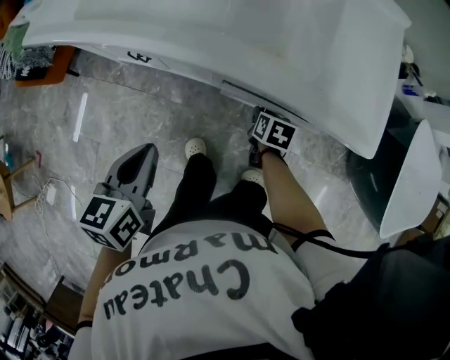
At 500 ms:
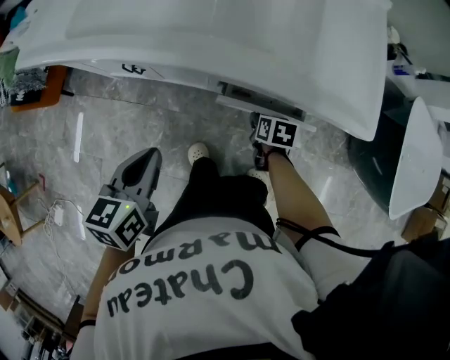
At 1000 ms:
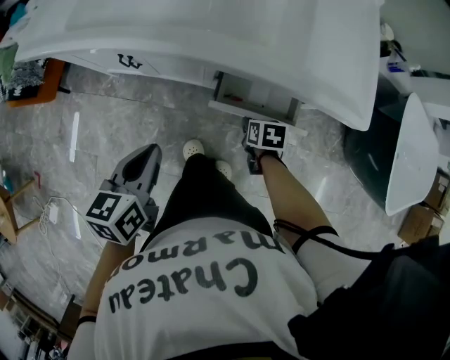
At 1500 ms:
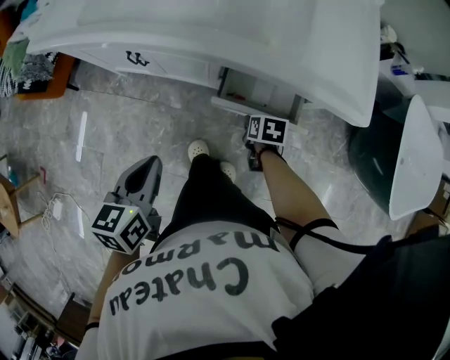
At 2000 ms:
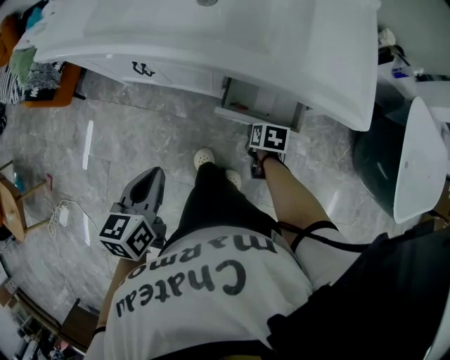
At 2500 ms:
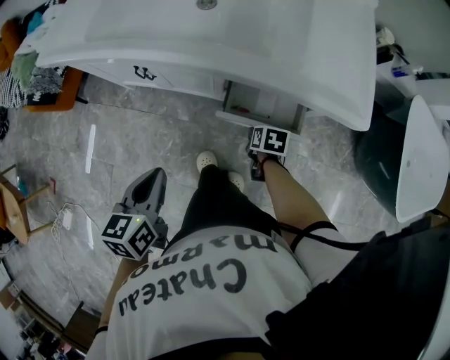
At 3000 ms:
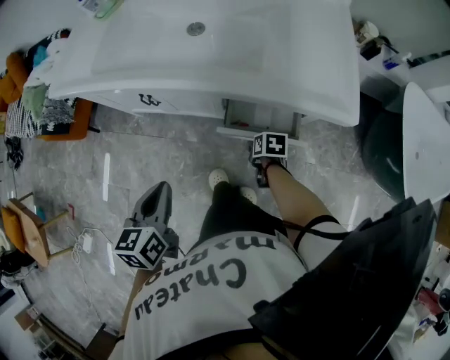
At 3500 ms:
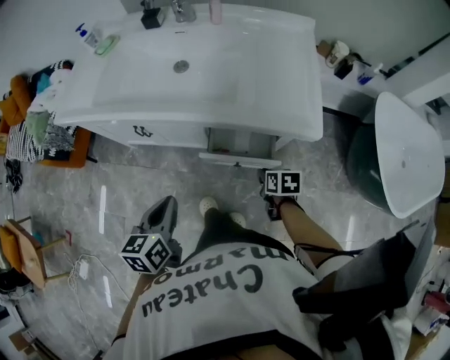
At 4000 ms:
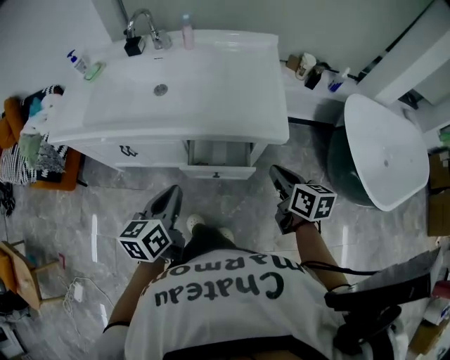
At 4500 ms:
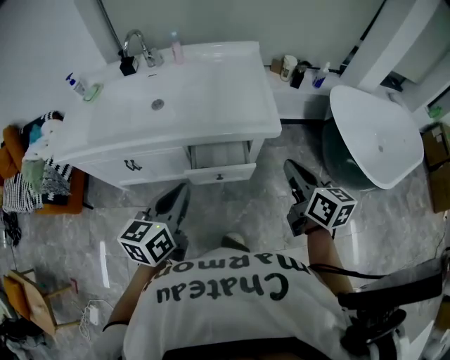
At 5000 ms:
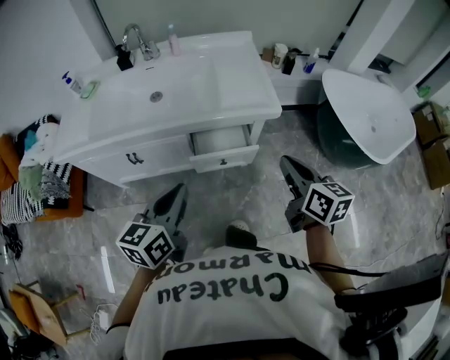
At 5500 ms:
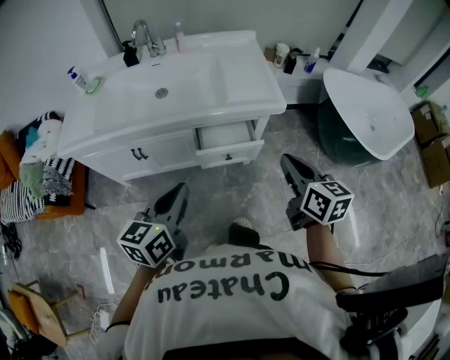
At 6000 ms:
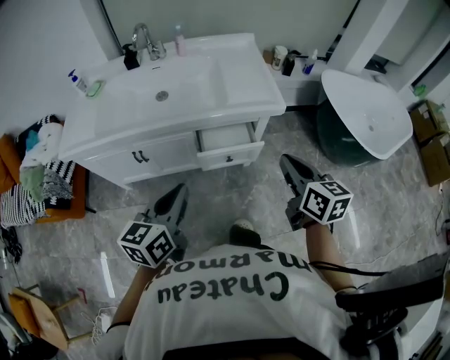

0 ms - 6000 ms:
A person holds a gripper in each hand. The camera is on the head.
0 ms - 2000 ms: The grippers both shift backward by roughly 5 cm.
2000 ms - 4000 ms: The right gripper is displaced upward and to the right by about 35 cm, tips its fingers upward by some 40 degrees, and closes its fingers, while the left gripper is displaced to the right and upward by about 15 cm.
4000 ms - 6000 ms: The left gripper goes about 15 cm backward, upward and to the left, and turns by some 20 degrees, while the right gripper goes about 20 cm backward and upward.

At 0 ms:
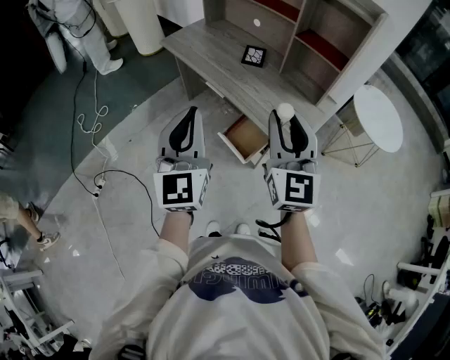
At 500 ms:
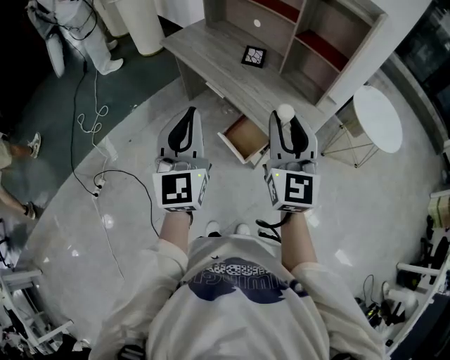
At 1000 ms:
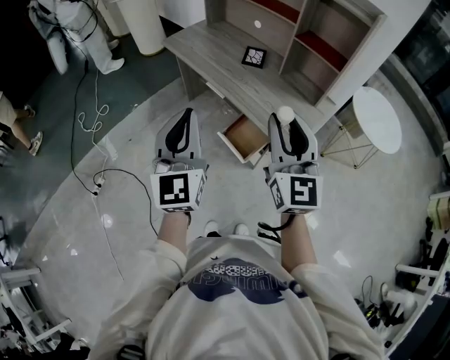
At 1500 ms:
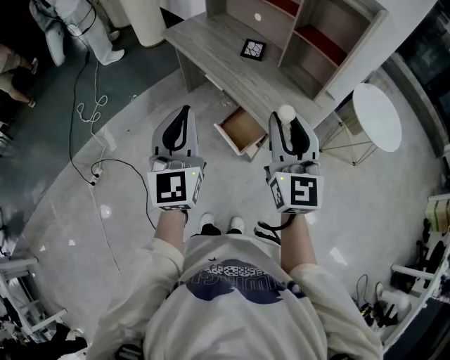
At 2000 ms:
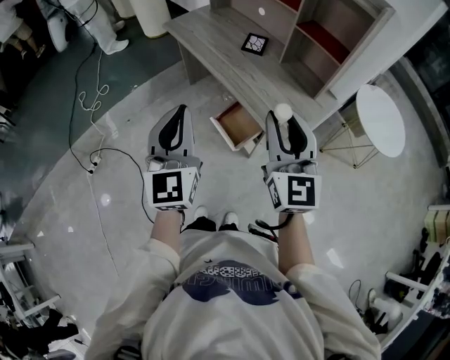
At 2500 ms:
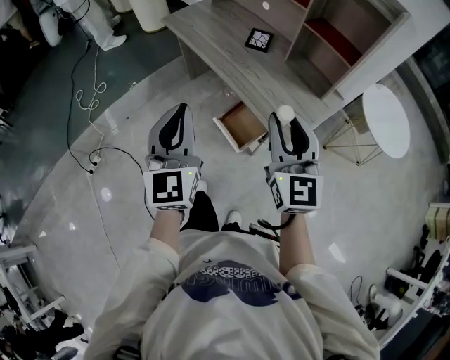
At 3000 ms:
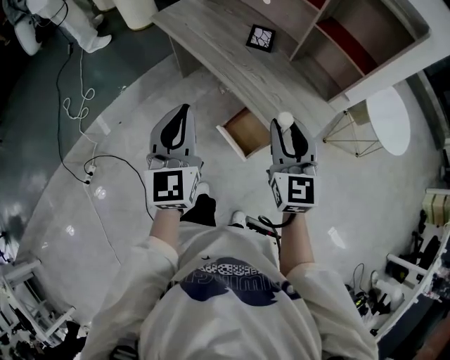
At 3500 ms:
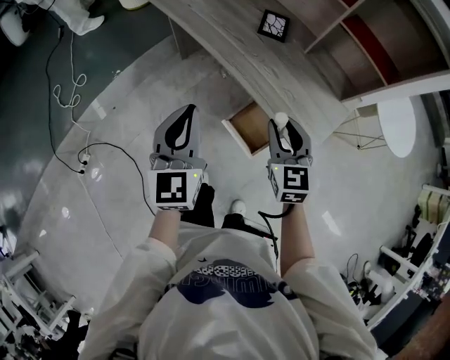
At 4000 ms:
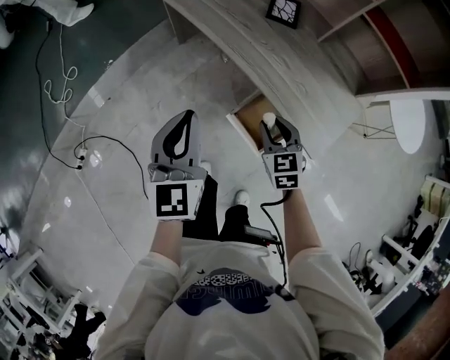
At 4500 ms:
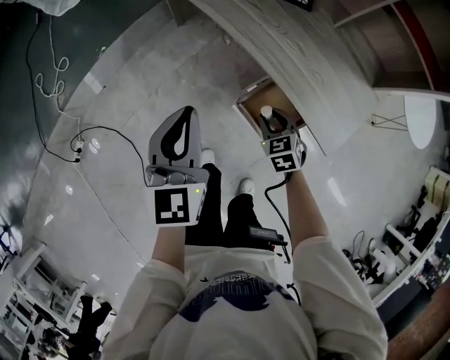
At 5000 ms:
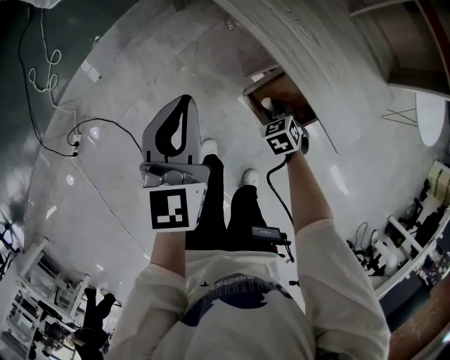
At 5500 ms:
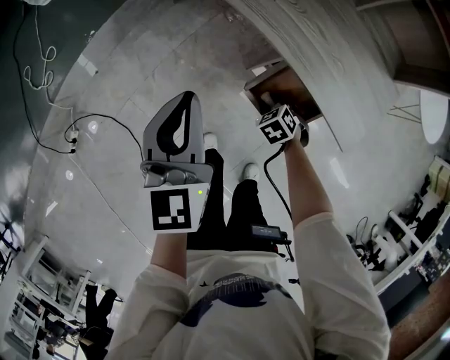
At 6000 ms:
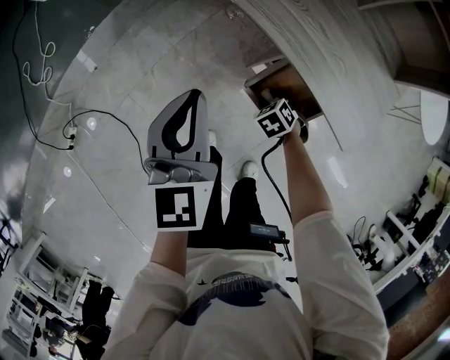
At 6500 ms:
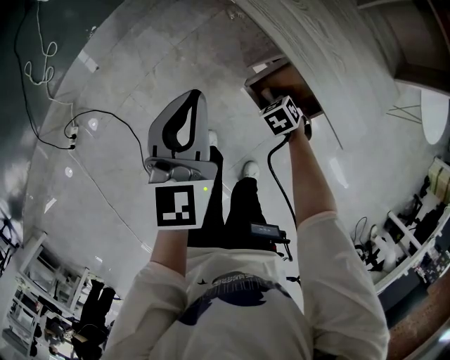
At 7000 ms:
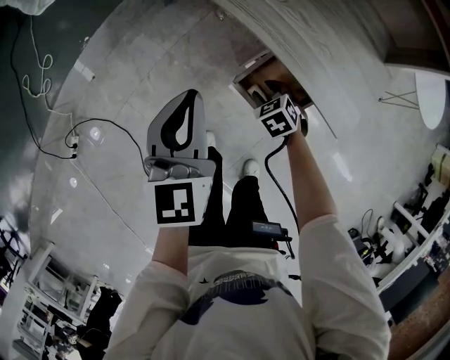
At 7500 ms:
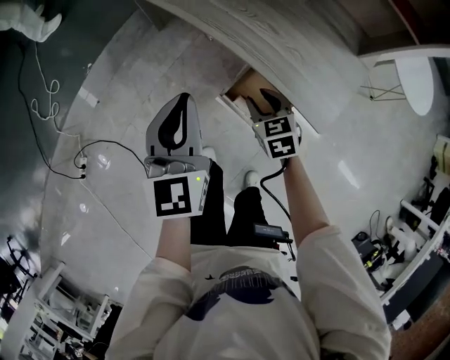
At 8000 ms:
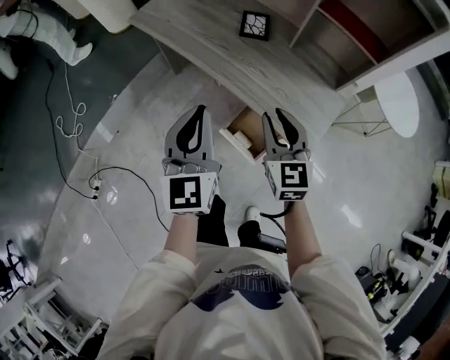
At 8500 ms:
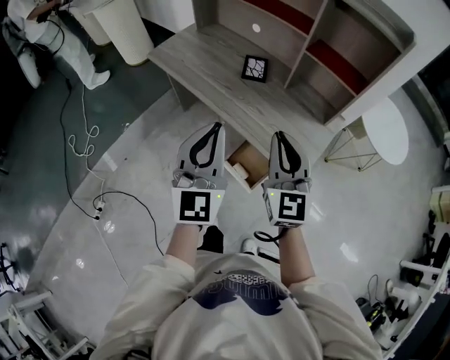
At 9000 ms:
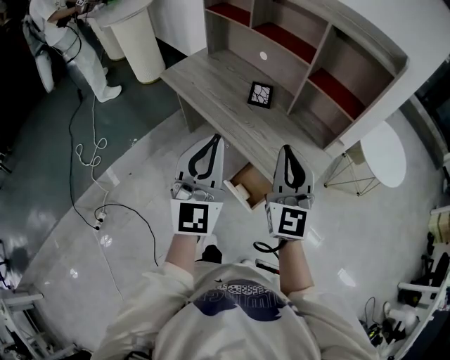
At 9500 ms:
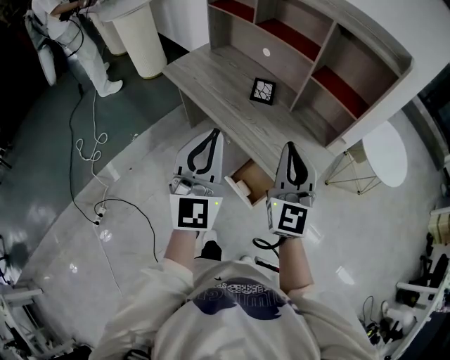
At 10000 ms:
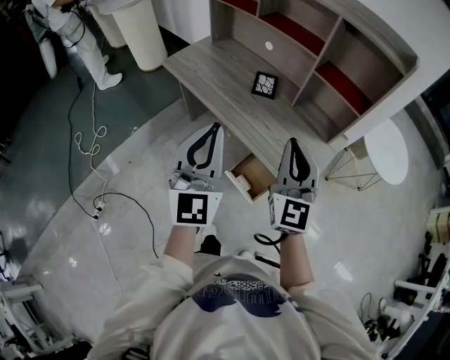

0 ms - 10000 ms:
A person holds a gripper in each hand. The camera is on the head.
0 ms - 2000 ms: The left gripper ends up some 5 cm from where it was, while the right gripper goes approximately 5 cm to the right.
2000 ms - 4000 ms: The right gripper travels downward and forward by approximately 40 cm, and tips its fingers downward by about 40 degrees, while the left gripper is displaced forward, downward and to the left by roughly 30 cm, and changes its angle by roughly 20 degrees.
4000 ms - 6000 ms: The right gripper shifts some 25 cm downward, and tilts its fingers about 40 degrees downward; the left gripper heads downward, covering approximately 10 cm.
6000 ms - 8000 ms: The right gripper moves upward, some 40 cm, and tips its fingers upward by some 60 degrees. The left gripper heads upward, covering approximately 20 cm.
8000 ms - 10000 ms: Both grippers travel together upward, roughly 15 cm. The right gripper rotates roughly 20 degrees, and closes.

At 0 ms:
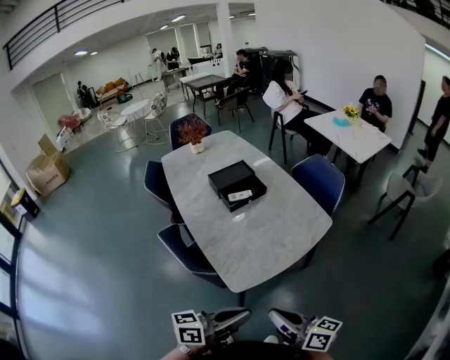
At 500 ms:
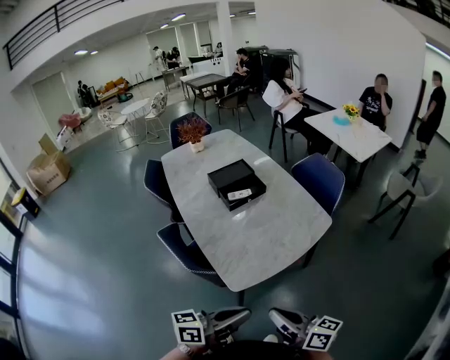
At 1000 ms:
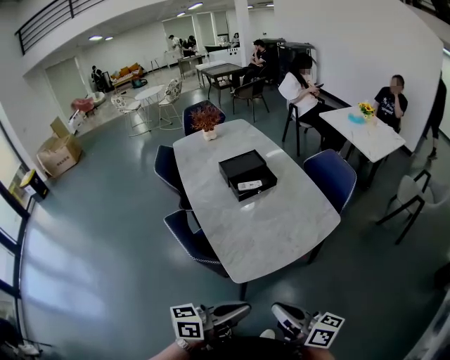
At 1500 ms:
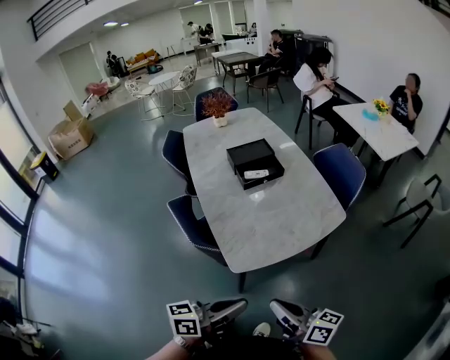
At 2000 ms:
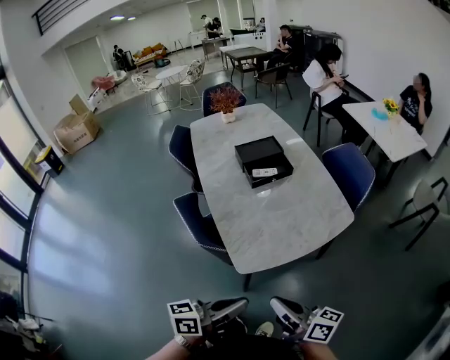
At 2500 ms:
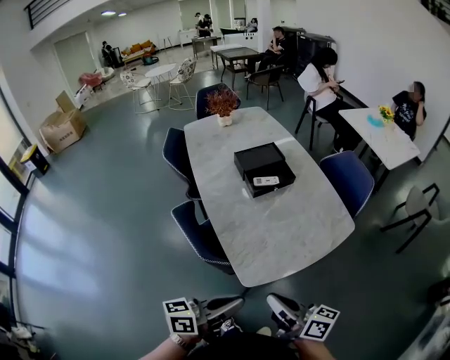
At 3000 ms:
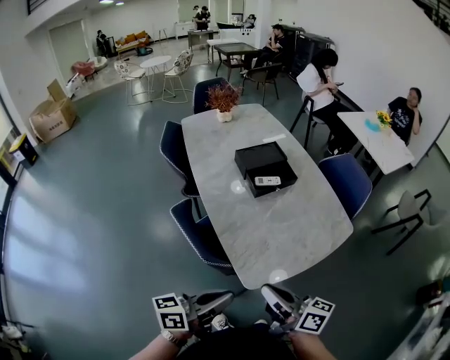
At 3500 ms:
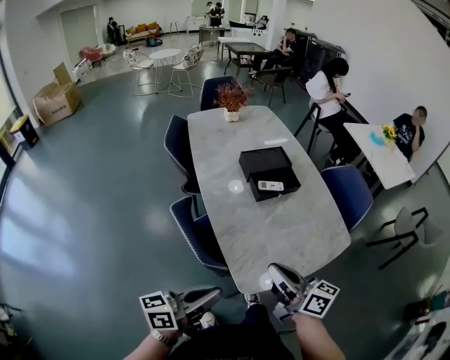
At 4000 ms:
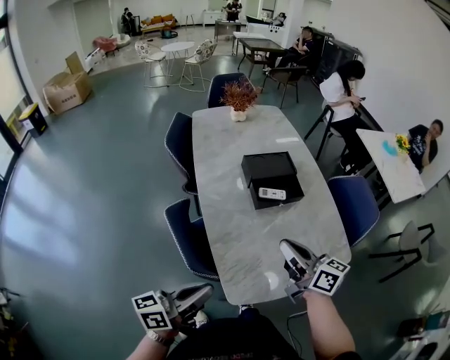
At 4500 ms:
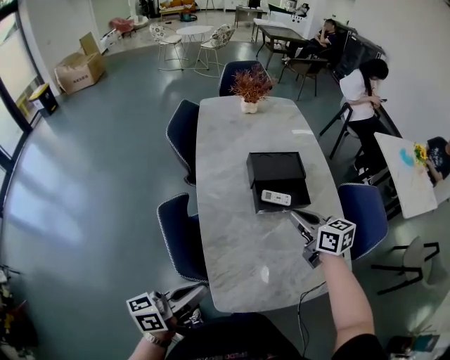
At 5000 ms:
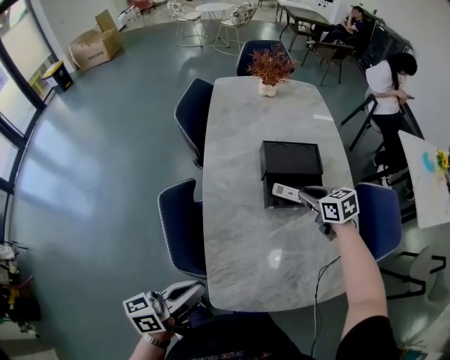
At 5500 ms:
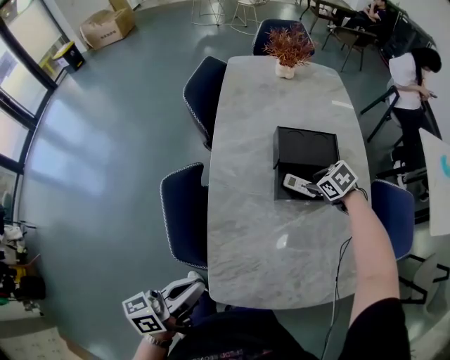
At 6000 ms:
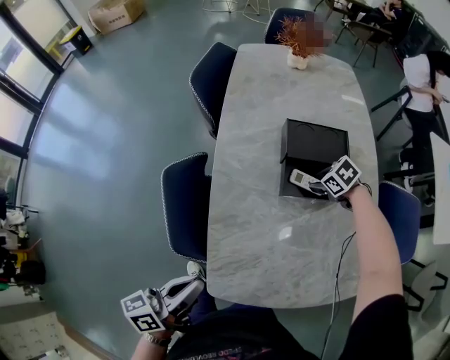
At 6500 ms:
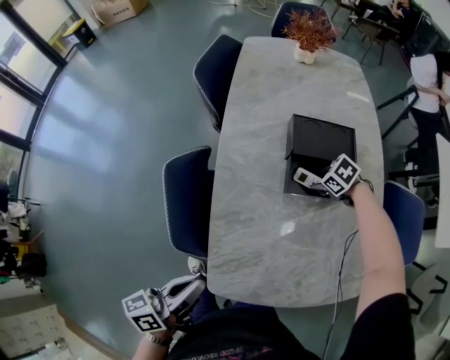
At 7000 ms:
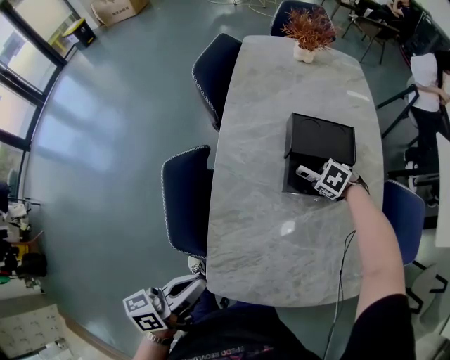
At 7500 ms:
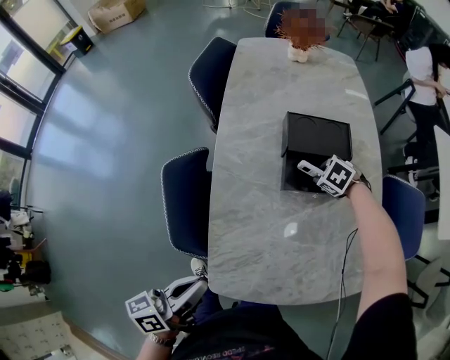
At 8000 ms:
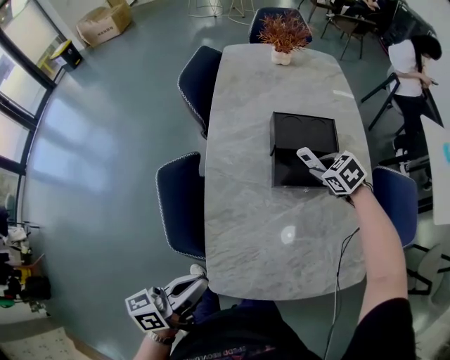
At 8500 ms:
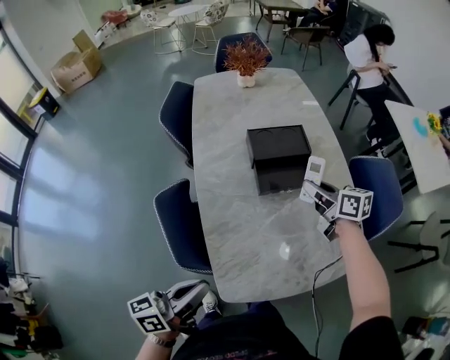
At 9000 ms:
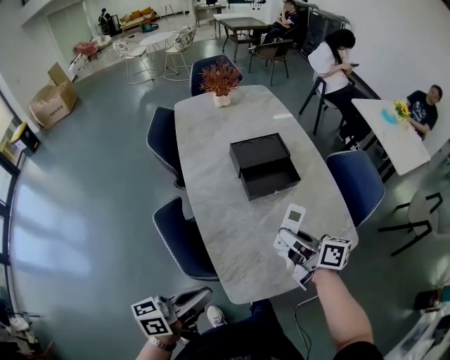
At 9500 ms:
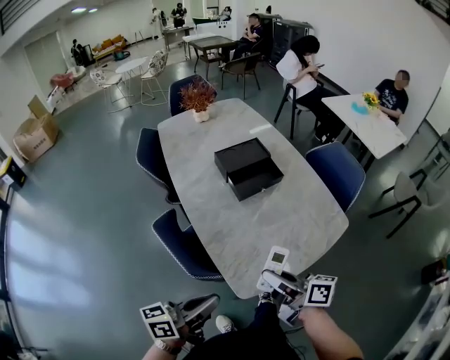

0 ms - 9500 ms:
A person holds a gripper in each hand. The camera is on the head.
0 ms - 2000 ms: There are only small adjustments of the grippers.
2000 ms - 4000 ms: The right gripper shifts some 30 cm forward. Meanwhile the left gripper moves forward and to the left, roughly 20 cm.
4000 ms - 5500 ms: The left gripper ends up roughly 10 cm from where it was, and changes its angle by roughly 30 degrees. Meanwhile the right gripper moves approximately 40 cm, tilts its fingers about 60 degrees downward, and opens up.
5500 ms - 7500 ms: The right gripper changes its angle by approximately 20 degrees.
7500 ms - 9500 ms: The right gripper changes place by approximately 50 cm, and tips its fingers upward by approximately 80 degrees. The left gripper moves about 10 cm, and swivels roughly 40 degrees.

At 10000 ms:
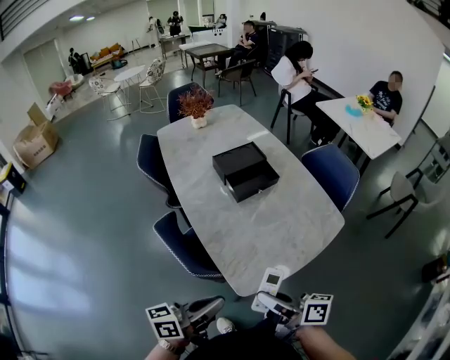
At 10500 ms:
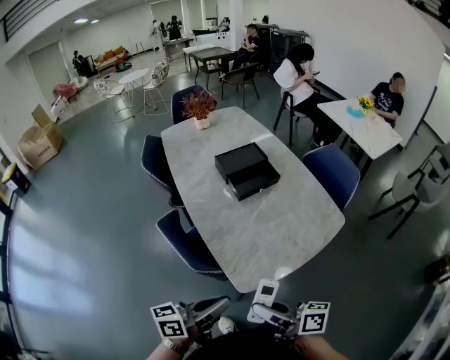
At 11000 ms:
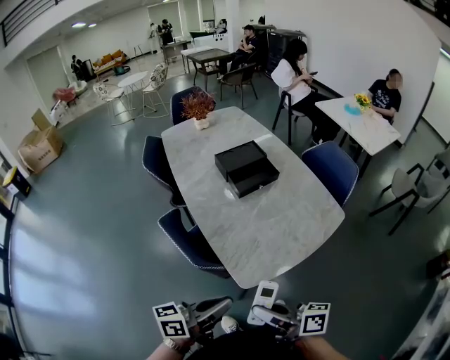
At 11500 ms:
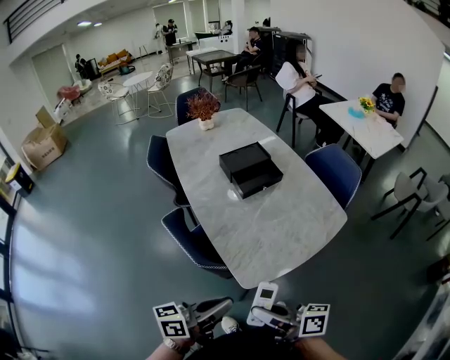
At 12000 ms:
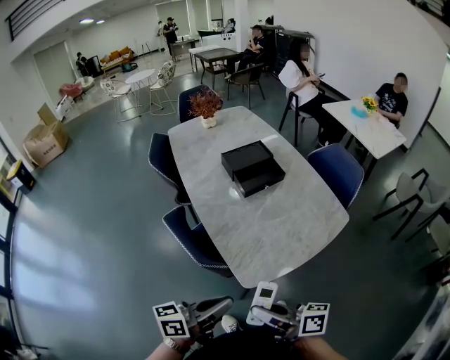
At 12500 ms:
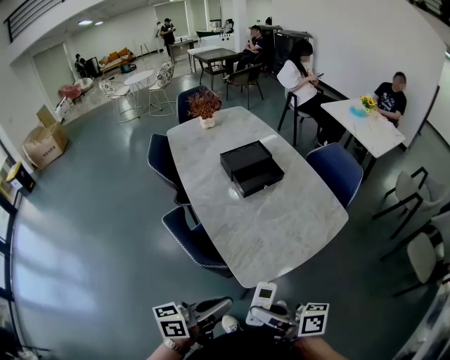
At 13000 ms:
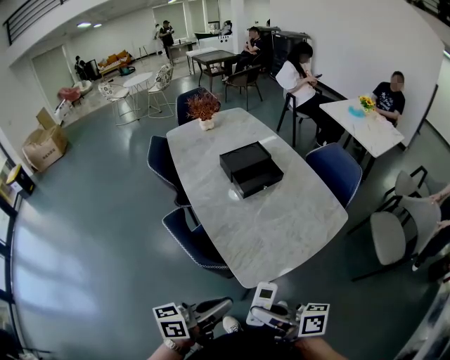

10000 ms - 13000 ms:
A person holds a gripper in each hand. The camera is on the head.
10000 ms - 11500 ms: The right gripper travels backward by approximately 10 cm.
11500 ms - 13000 ms: Both grippers stay put.
